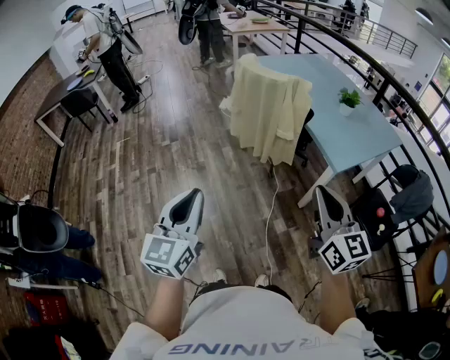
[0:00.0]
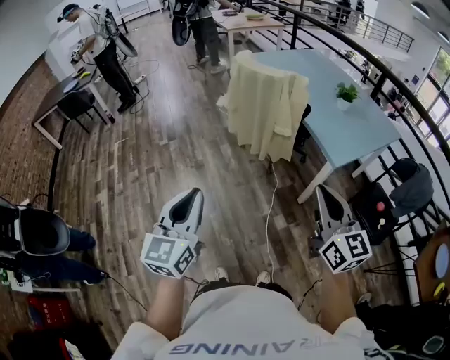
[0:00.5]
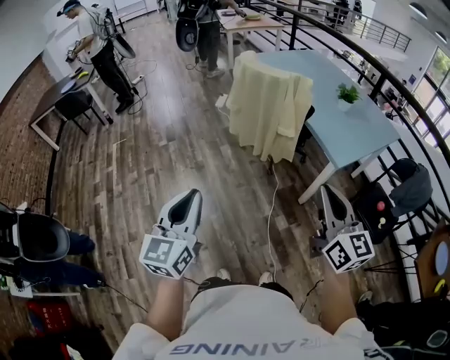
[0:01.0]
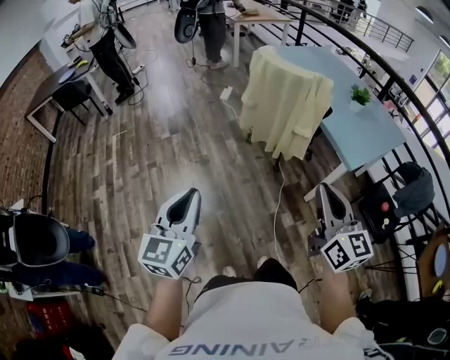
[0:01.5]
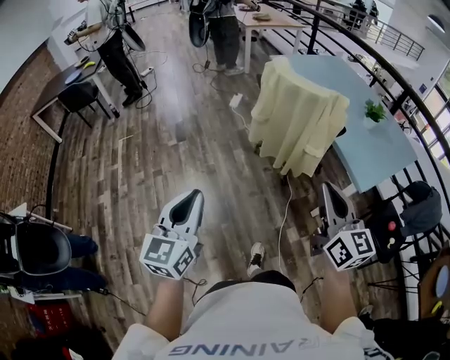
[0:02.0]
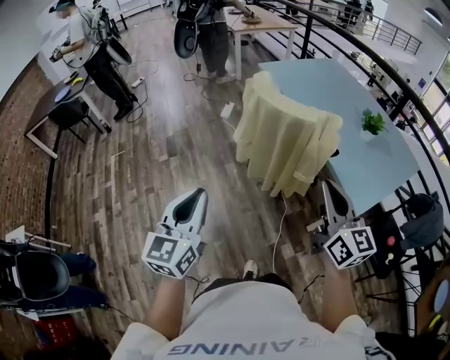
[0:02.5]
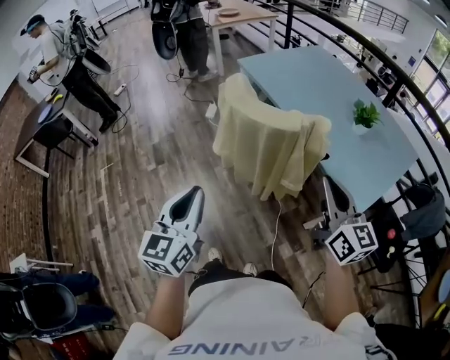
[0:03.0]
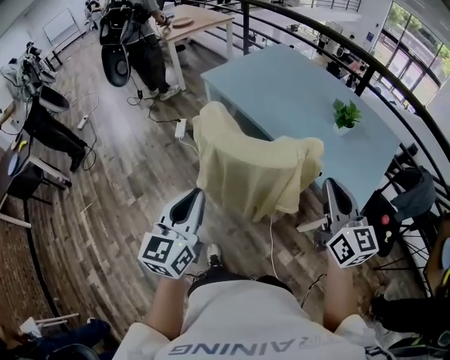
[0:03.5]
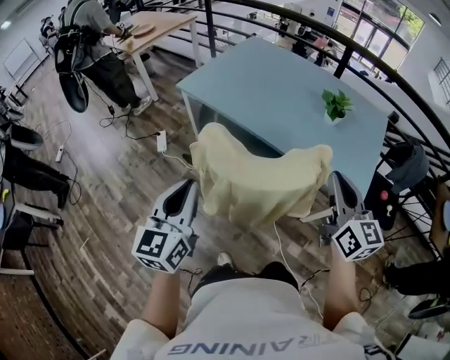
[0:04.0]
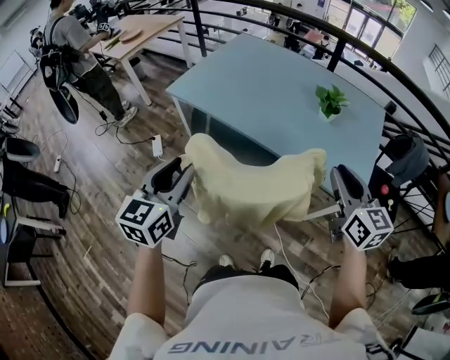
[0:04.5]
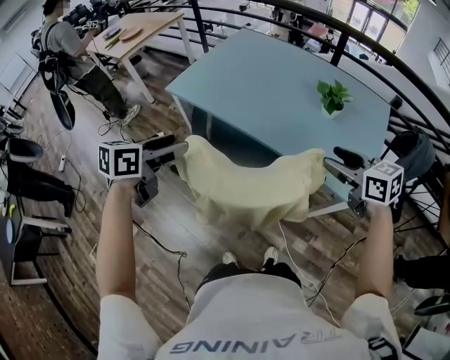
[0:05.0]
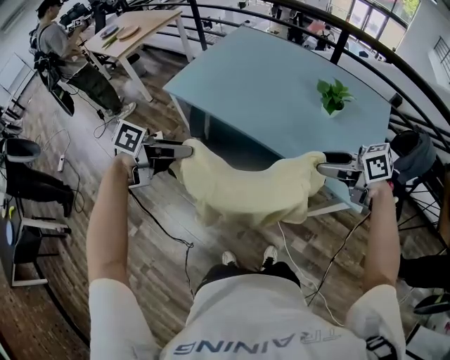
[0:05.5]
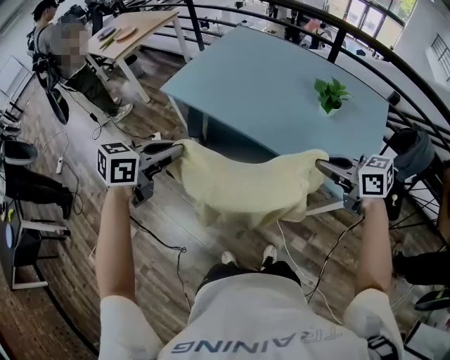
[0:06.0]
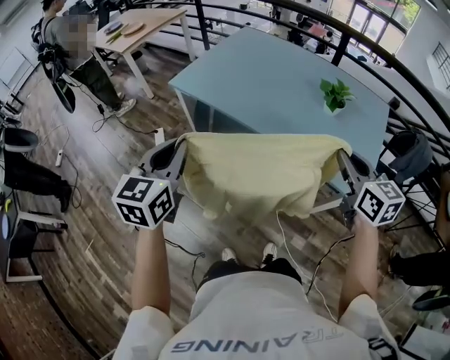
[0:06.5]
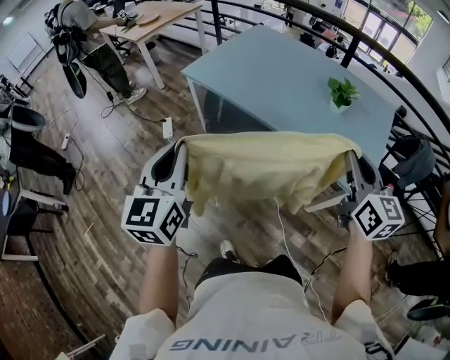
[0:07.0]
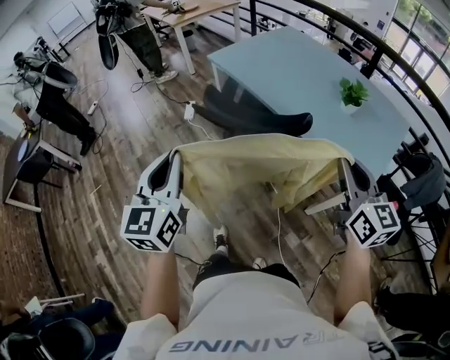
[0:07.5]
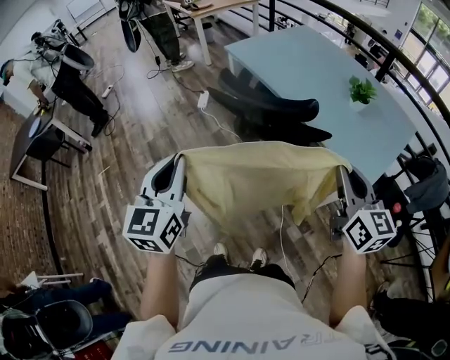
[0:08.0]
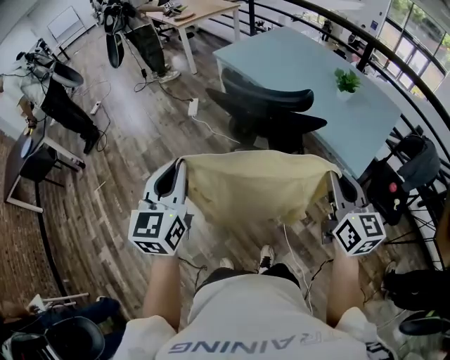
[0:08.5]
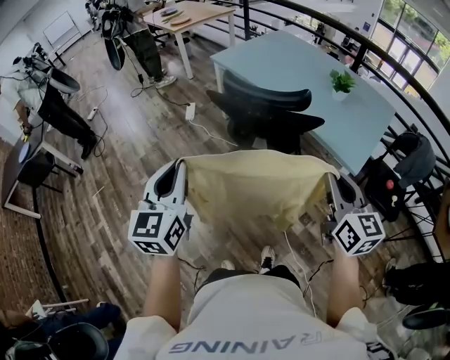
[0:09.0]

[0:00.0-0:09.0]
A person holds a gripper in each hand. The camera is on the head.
0:00.0 to 0:02.0: The left gripper shifts about 20 cm to the left and forward. The right gripper shifts some 20 cm forward and to the left.
0:02.0 to 0:04.5: The two grippers travel together, roughly 60 cm. The left gripper rotates about 40 degrees, while the right gripper rotates approximately 40 degrees.
0:04.5 to 0:07.0: The left gripper changes place by some 10 cm, and opens and closes again. The right gripper reaches about 10 cm downward, then returns, and opens, then closes once more.
0:07.0 to 0:09.0: Both grippers travel together backward, roughly 30 cm.

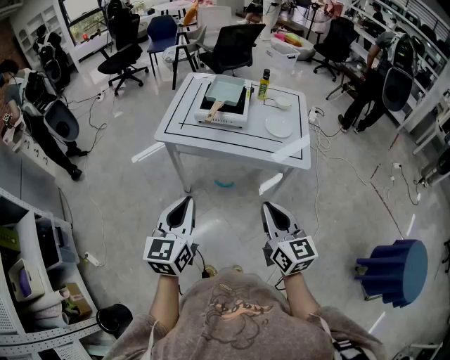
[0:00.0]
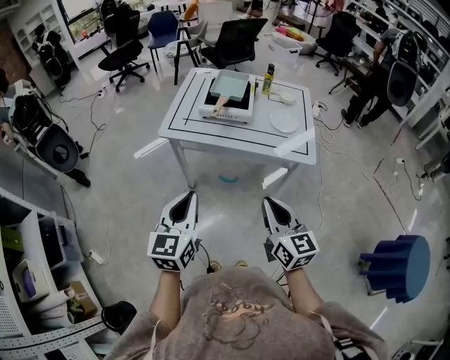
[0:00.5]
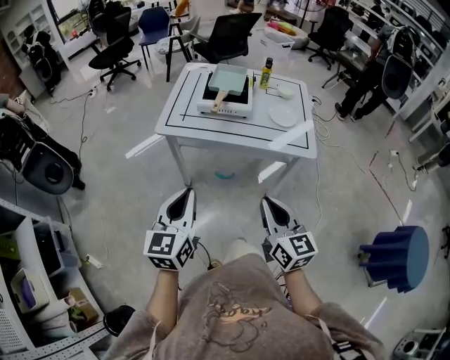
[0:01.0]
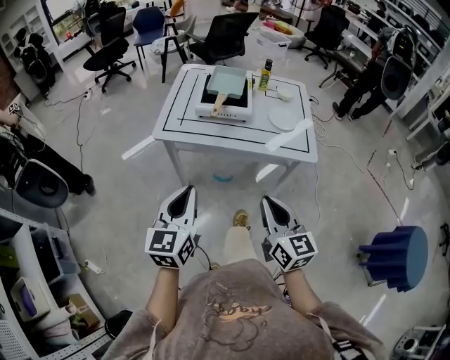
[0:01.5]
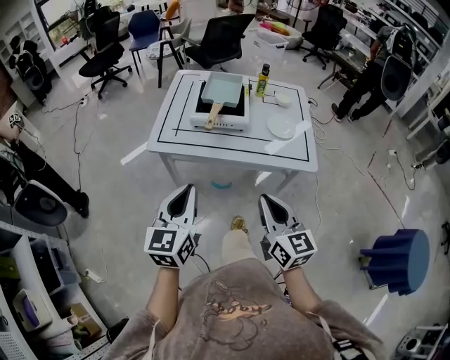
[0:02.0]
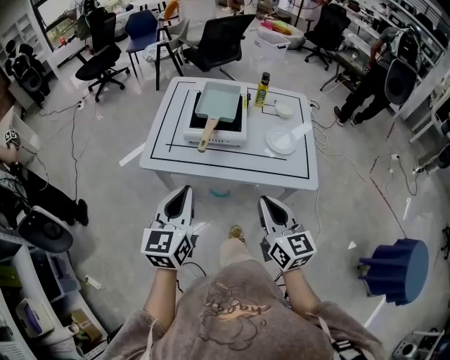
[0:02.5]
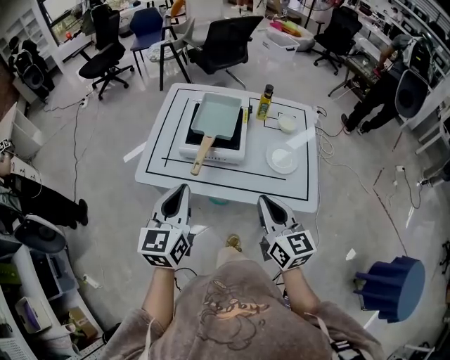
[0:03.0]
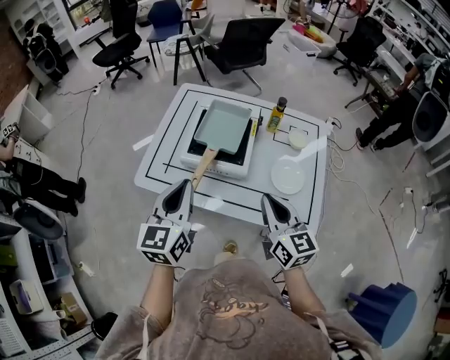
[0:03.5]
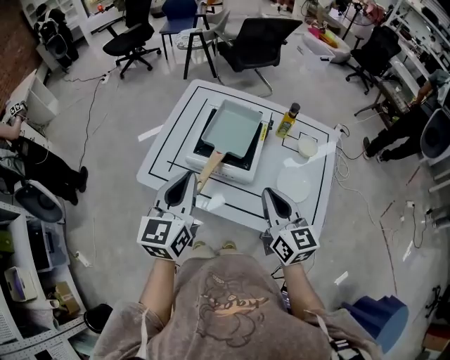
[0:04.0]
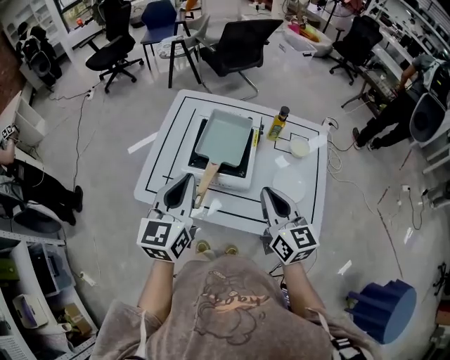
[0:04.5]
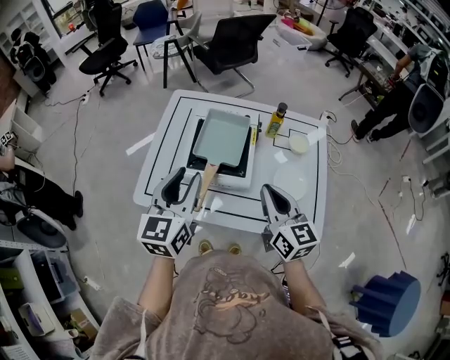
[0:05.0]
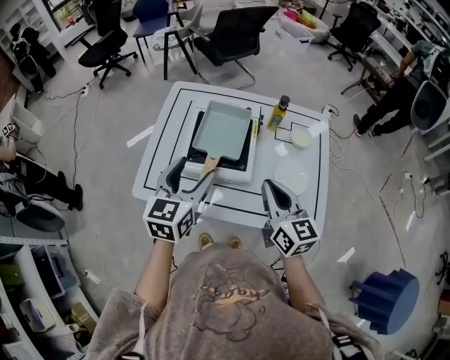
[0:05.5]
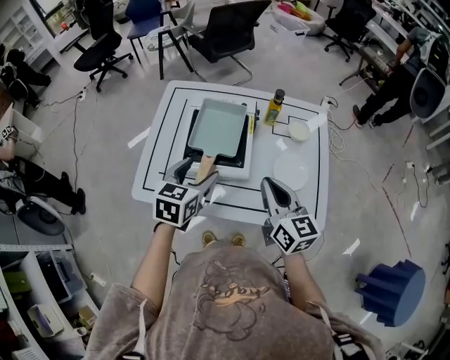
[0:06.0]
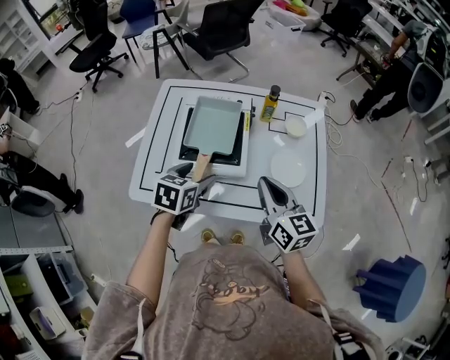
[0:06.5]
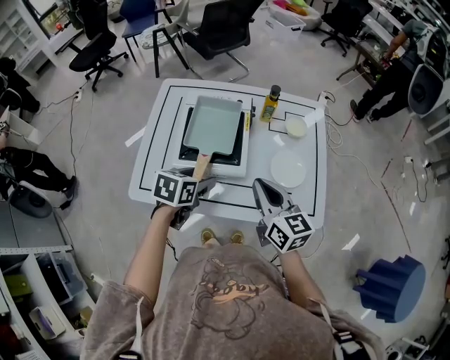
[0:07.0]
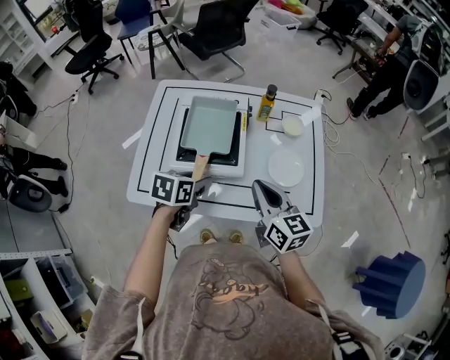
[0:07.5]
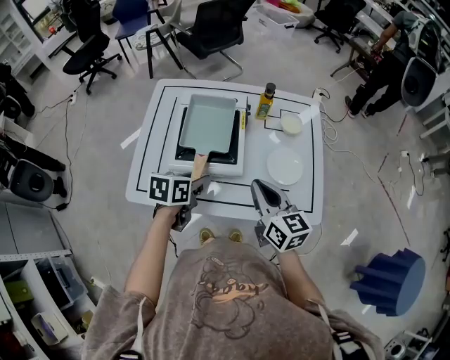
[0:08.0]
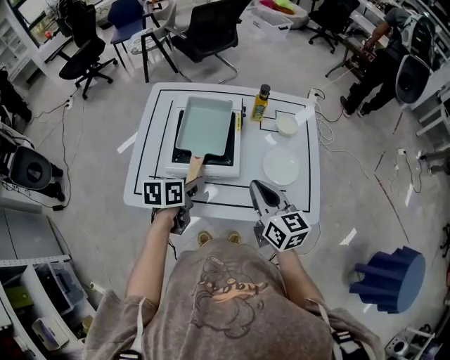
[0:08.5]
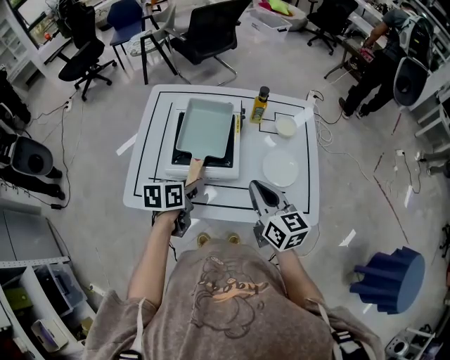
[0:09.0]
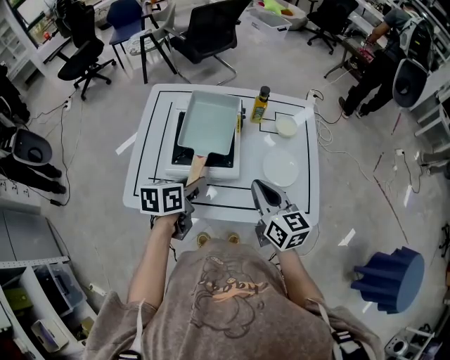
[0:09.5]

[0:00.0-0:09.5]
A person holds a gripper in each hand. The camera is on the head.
0:00.0 to 0:02.0: The grippers both shift forward by some 10 cm.
0:02.0 to 0:04.0: Both grippers travel together forward, about 25 cm.
0:04.0 to 0:05.5: The left gripper goes roughly 5 cm forward, and opens up.
0:05.5 to 0:07.5: The left gripper moves downward, approximately 15 cm, turns by about 40 degrees, and closes.
0:07.5 to 0:09.5: The grippers move only a little.

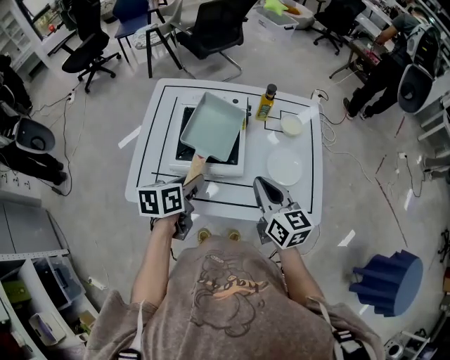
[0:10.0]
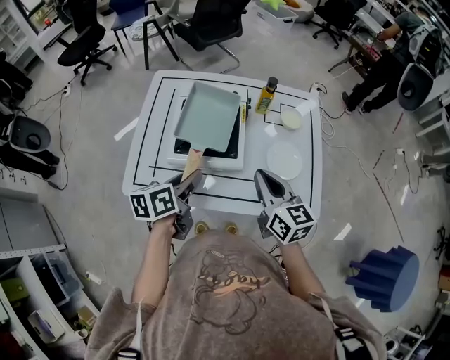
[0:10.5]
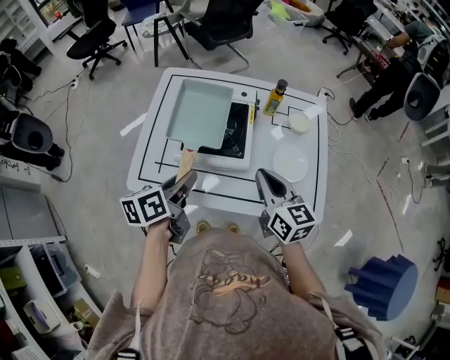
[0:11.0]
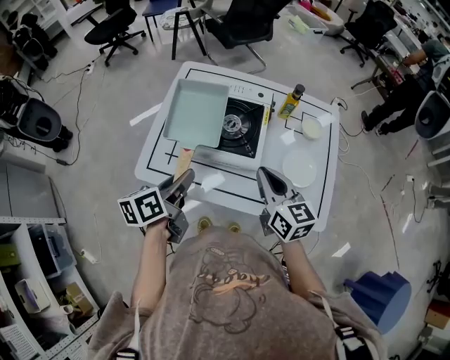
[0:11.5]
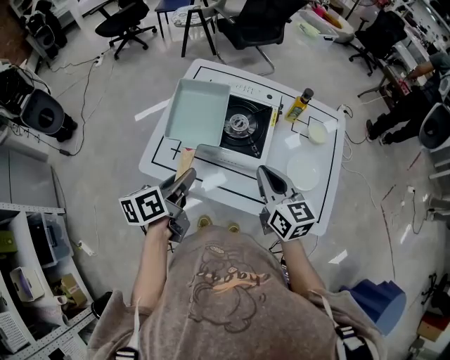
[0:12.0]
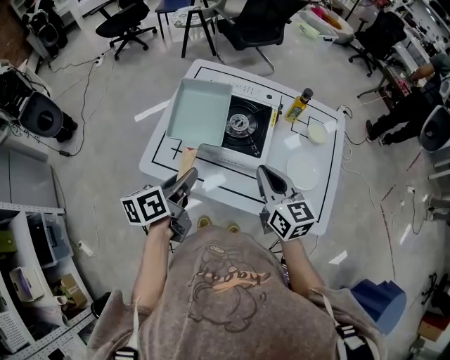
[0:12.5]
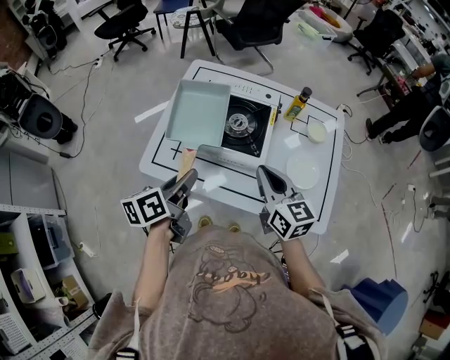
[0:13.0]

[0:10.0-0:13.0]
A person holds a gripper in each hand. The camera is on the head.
0:10.0 to 0:11.5: The left gripper is displaced to the left by roughly 5 cm, and changes its angle by some 20 degrees.
0:11.5 to 0:13.0: There are only small adjustments of the grippers.

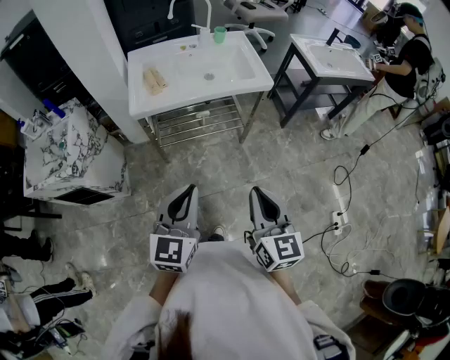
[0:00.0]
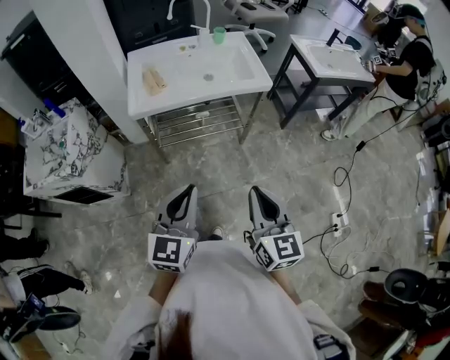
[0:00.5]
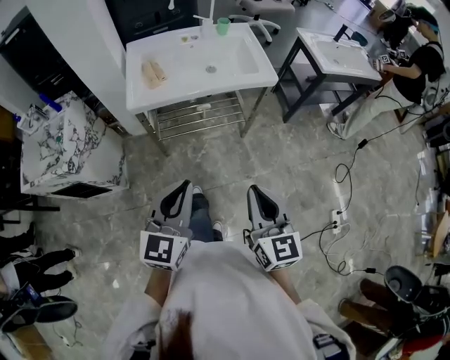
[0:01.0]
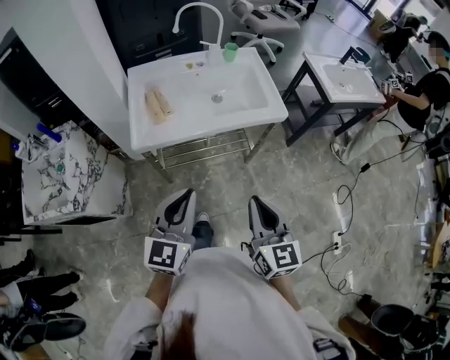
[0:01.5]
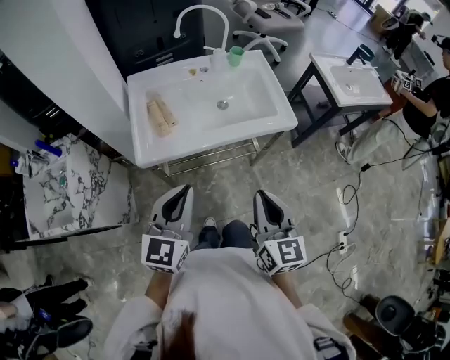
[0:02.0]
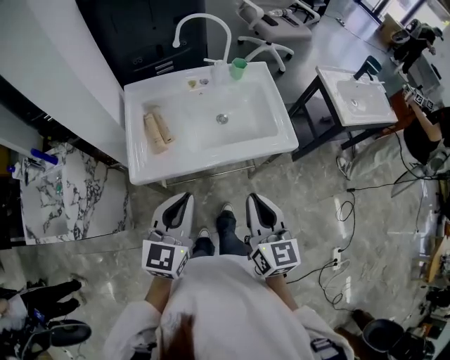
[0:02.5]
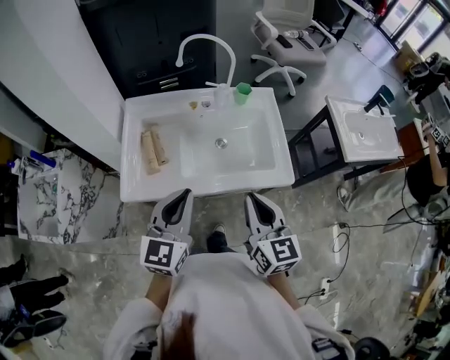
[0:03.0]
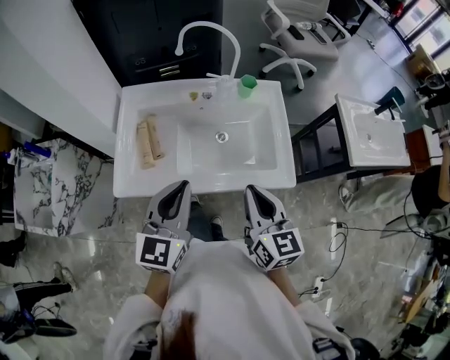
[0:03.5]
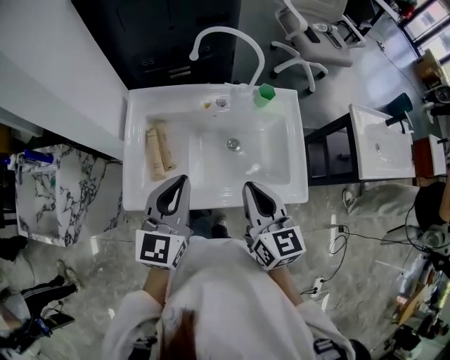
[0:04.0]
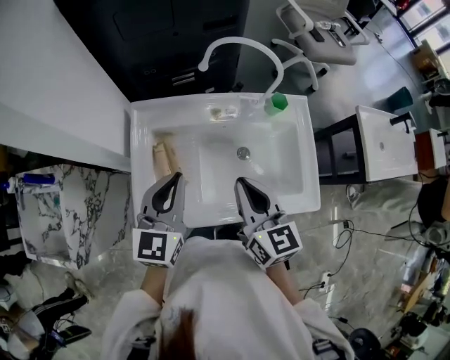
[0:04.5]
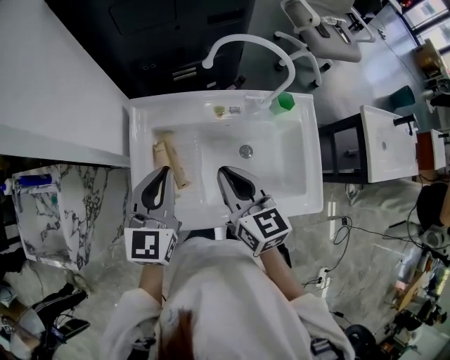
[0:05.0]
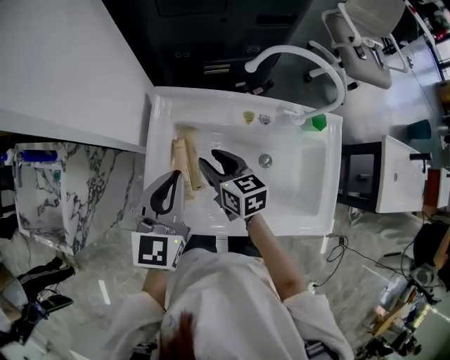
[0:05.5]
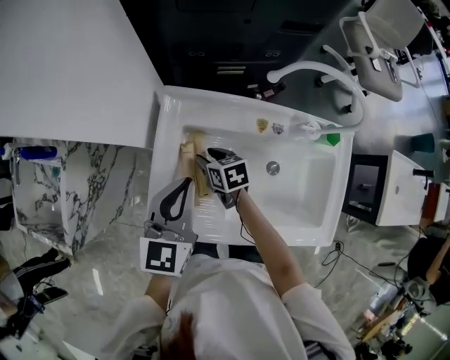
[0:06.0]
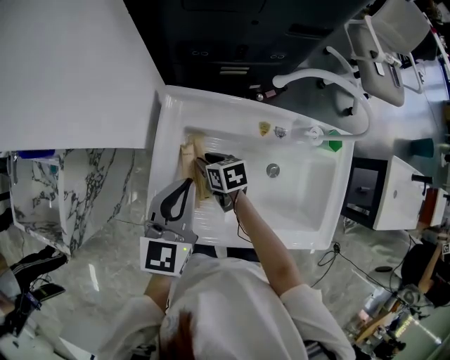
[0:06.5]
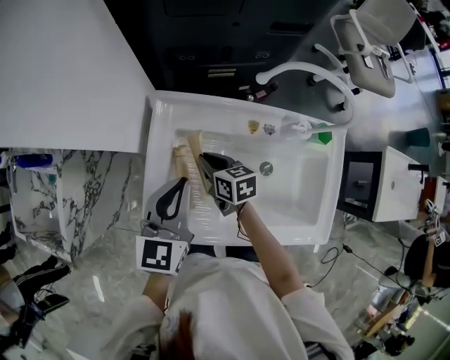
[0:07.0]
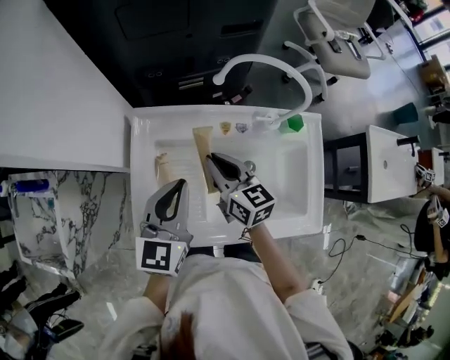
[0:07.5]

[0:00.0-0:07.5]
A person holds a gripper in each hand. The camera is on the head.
0:00.0 to 0:02.0: The two grippers go roughly 25 cm forward.
0:02.0 to 0:04.0: The grippers both shift forward by roughly 30 cm. The right gripper swivels about 20 degrees.
0:04.0 to 0:05.5: The right gripper heads forward, to the left and downward, covering some 30 cm, swivels some 30 degrees, and opens up, while the left gripper travels forward and to the left by some 15 cm.
0:05.5 to 0:07.5: Both grippers travel together to the right, some 5 cm. The right gripper goes downward and returns, roughly 15 cm each way, and closes up.
